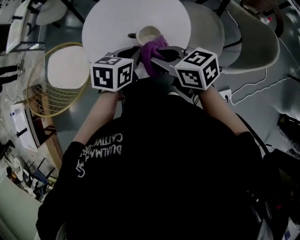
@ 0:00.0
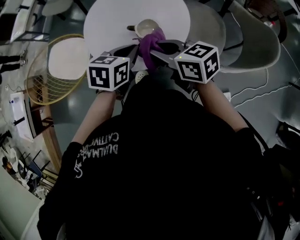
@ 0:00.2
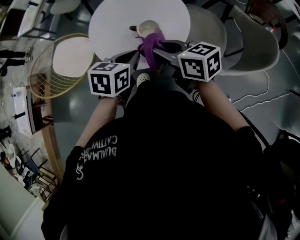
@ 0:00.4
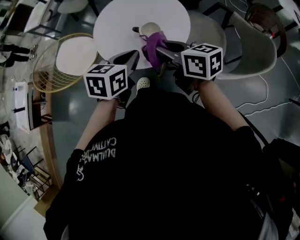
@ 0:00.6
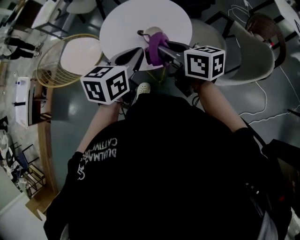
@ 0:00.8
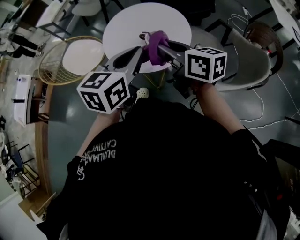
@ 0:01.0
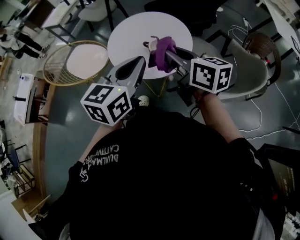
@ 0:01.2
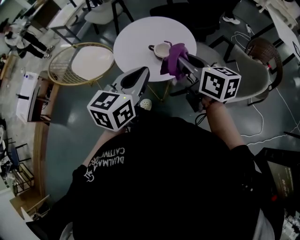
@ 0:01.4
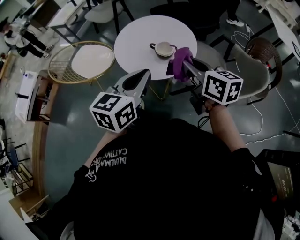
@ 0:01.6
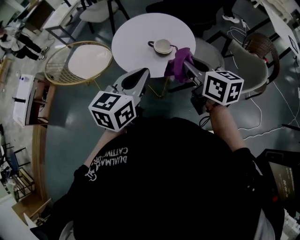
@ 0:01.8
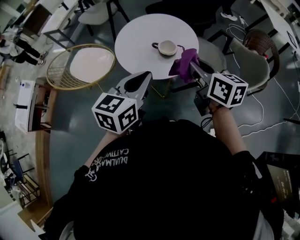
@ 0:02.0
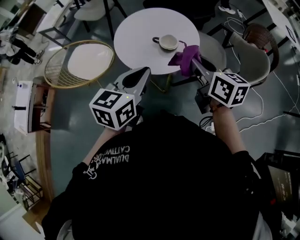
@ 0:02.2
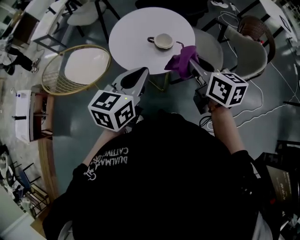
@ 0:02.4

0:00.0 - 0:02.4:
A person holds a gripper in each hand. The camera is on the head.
0:00.0 - 0:01.2: The grippers both shift upward and backward by some 20 cm. The left gripper changes its angle by some 40 degrees.
0:01.2 - 0:02.4: The left gripper shifts approximately 10 cm to the left and downward.

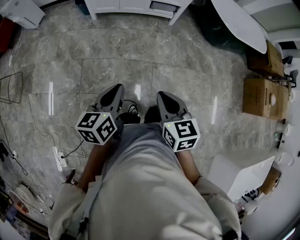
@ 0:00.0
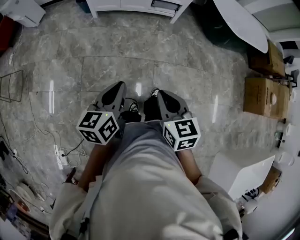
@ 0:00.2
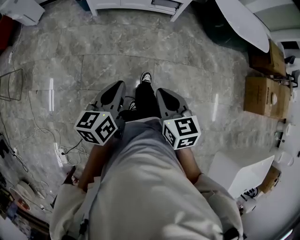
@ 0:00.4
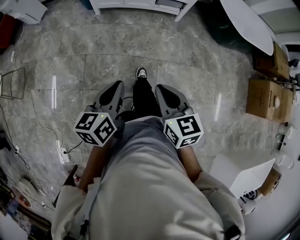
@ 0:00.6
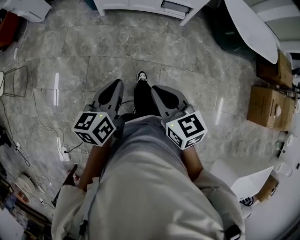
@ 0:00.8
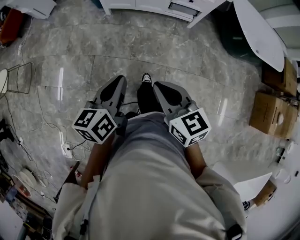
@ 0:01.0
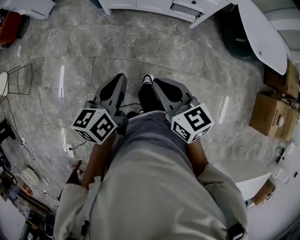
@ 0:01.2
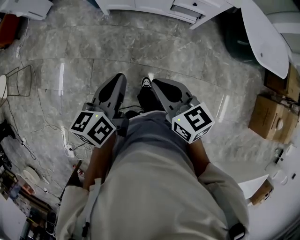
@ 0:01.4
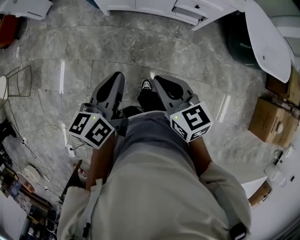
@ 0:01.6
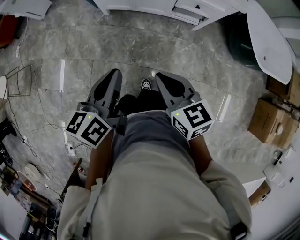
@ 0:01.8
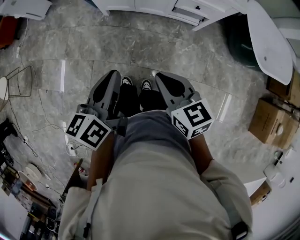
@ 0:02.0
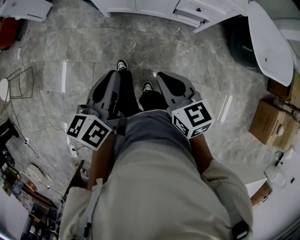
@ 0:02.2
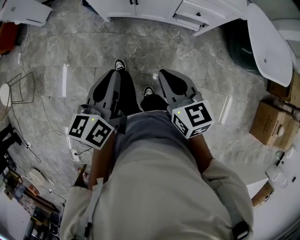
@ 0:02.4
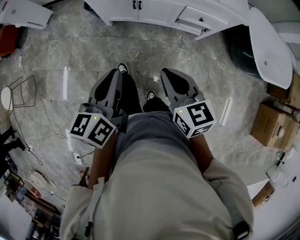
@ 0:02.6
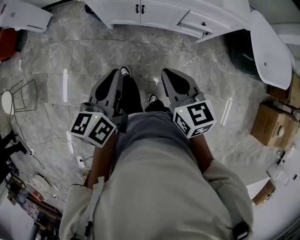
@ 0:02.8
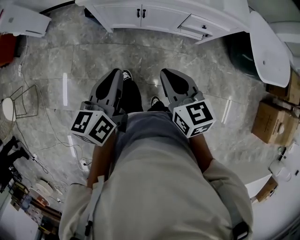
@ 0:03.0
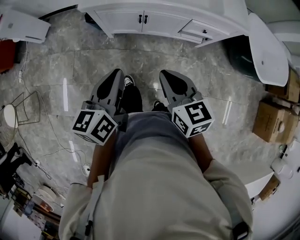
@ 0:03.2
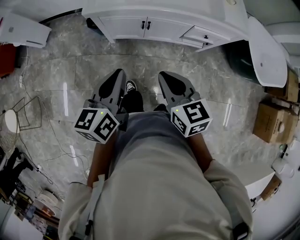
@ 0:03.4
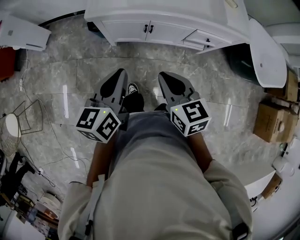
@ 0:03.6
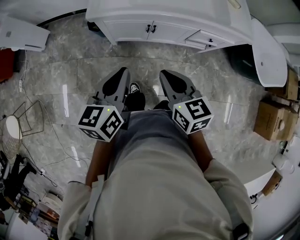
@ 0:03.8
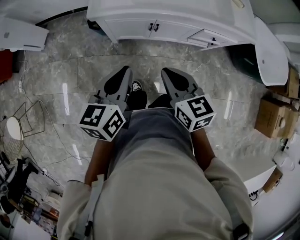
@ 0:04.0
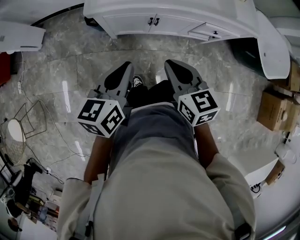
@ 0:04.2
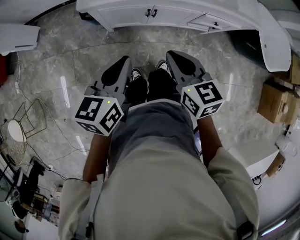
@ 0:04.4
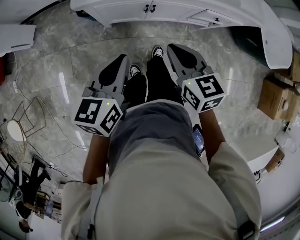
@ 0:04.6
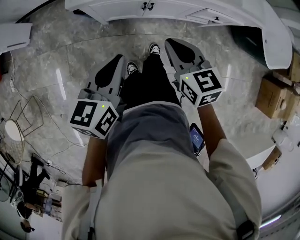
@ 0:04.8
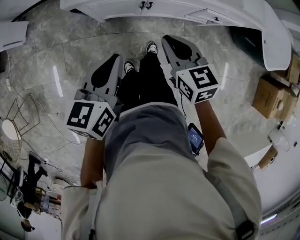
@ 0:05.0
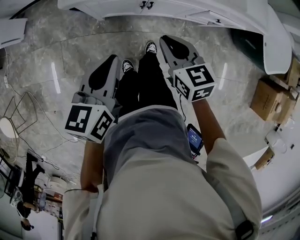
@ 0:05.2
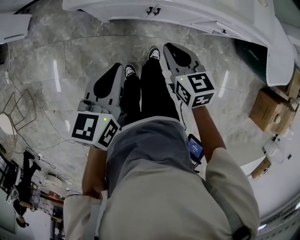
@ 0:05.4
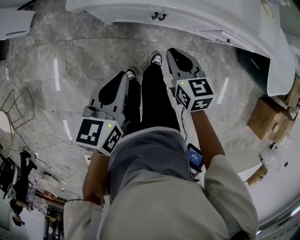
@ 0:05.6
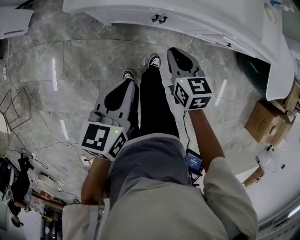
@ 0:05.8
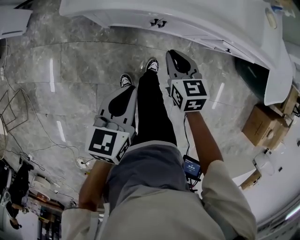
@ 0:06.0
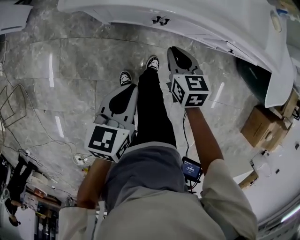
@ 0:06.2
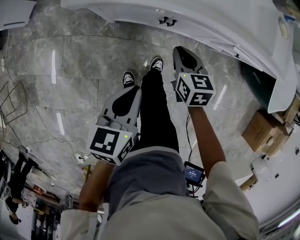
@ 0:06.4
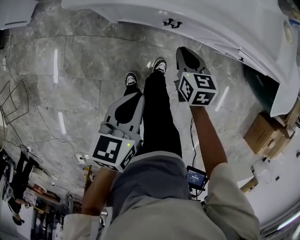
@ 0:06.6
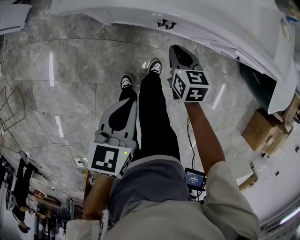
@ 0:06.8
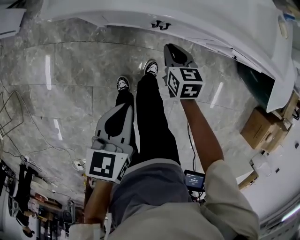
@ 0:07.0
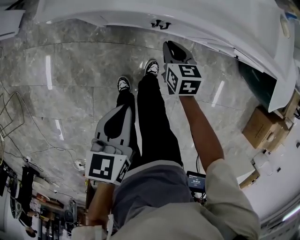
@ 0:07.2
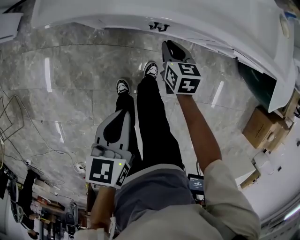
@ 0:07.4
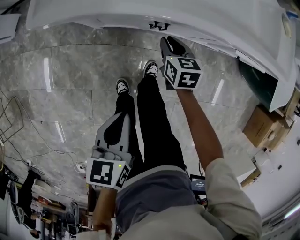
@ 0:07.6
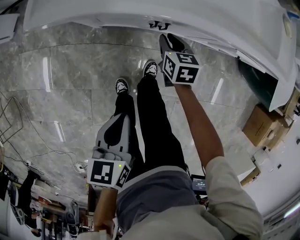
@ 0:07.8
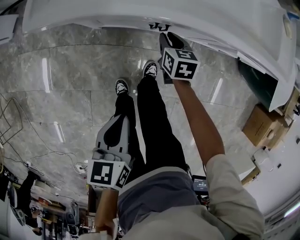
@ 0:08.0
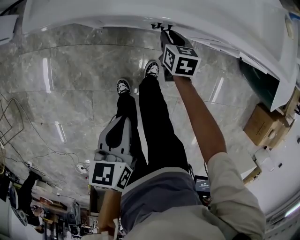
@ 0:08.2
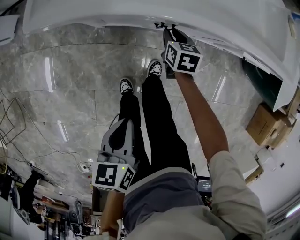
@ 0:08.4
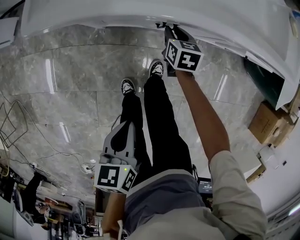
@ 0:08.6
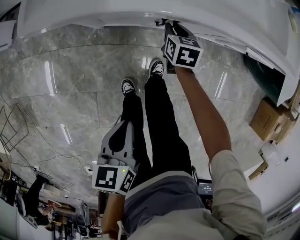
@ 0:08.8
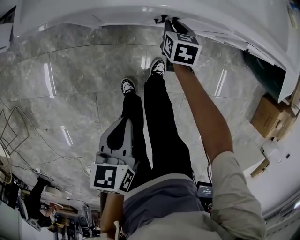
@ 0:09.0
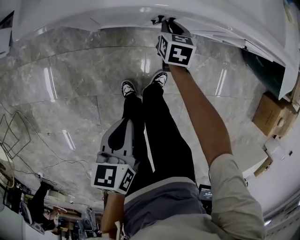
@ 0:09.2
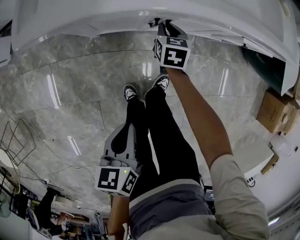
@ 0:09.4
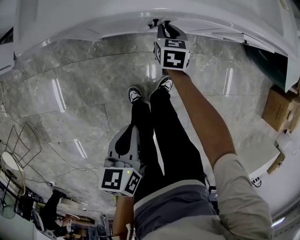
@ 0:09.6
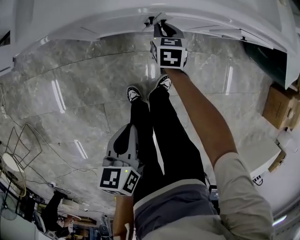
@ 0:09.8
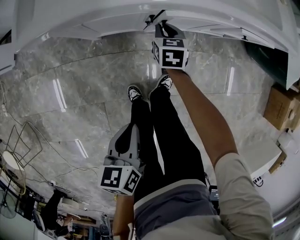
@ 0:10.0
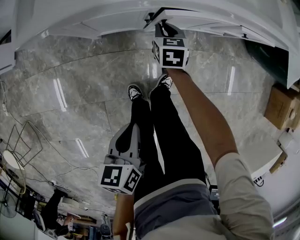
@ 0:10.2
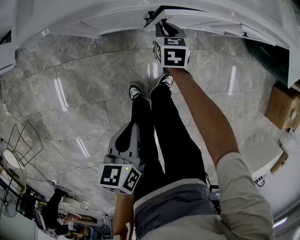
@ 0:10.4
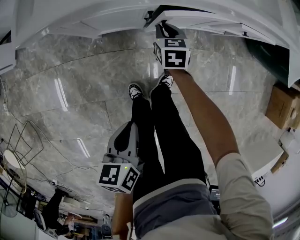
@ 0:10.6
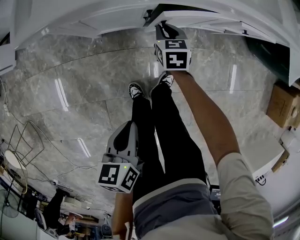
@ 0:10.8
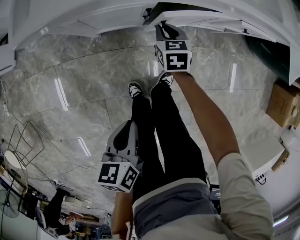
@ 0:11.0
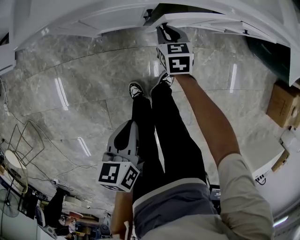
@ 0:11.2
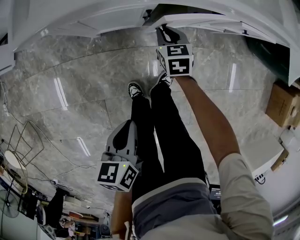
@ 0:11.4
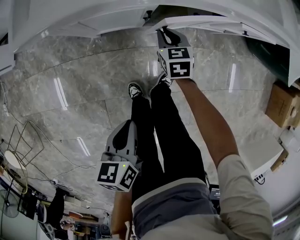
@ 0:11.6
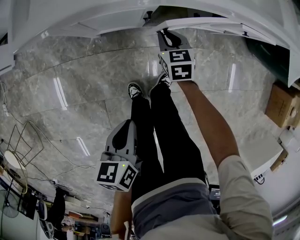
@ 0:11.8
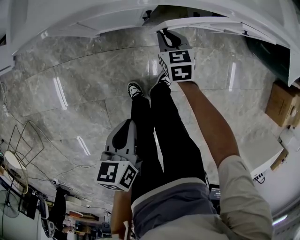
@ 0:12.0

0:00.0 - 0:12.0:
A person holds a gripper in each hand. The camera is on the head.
0:00.0 - 0:01.6: The two grippers go some 35 cm forward. The right gripper turns by about 20 degrees.
0:01.6 - 0:03.0: Both grippers move forward, roughly 20 cm.
0:03.0 - 0:04.4: Both grippers move forward and to the left, about 20 cm.
0:04.4 - 0:06.0: The right gripper is displaced downward and forward by about 25 cm. The left gripper travels downward by approximately 15 cm.
0:06.0 - 0:07.6: The left gripper heads downward, covering approximately 10 cm; the right gripper goes some 20 cm downward and forward.
0:07.6 - 0:09.0: The right gripper travels downward by some 5 cm. Meanwhile the left gripper moves some 5 cm.
0:09.0 - 0:10.4: The grippers make only small movements.
0:10.4 - 0:12.0: There are only small adjustments of the grippers.

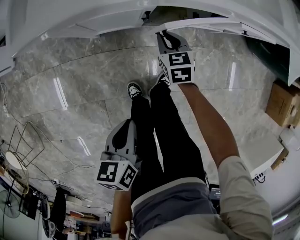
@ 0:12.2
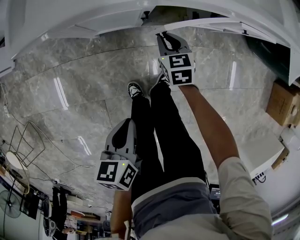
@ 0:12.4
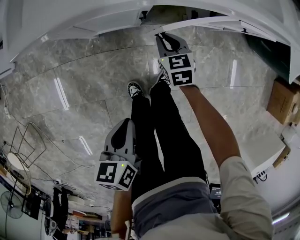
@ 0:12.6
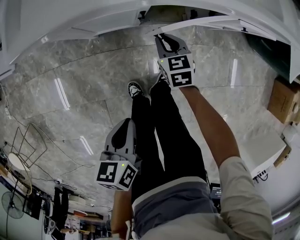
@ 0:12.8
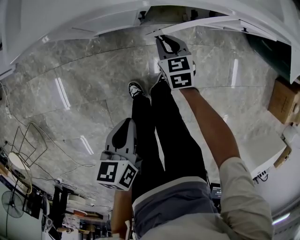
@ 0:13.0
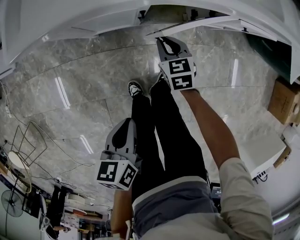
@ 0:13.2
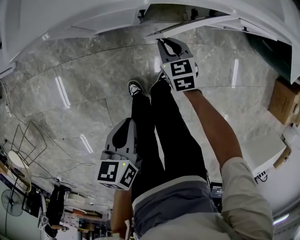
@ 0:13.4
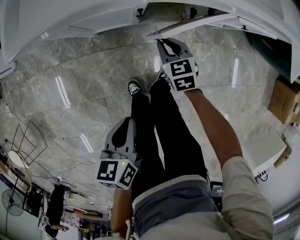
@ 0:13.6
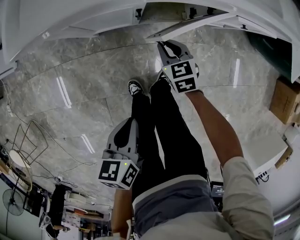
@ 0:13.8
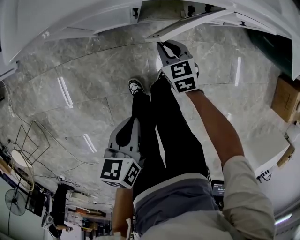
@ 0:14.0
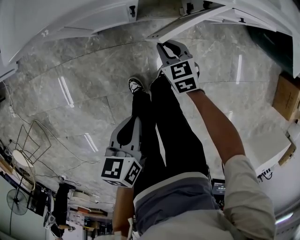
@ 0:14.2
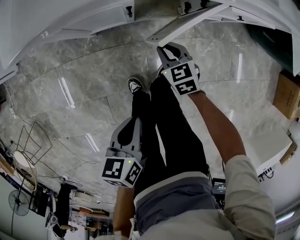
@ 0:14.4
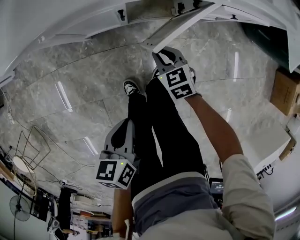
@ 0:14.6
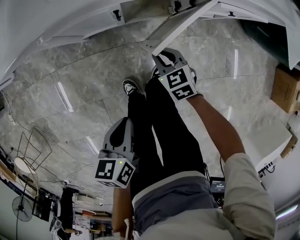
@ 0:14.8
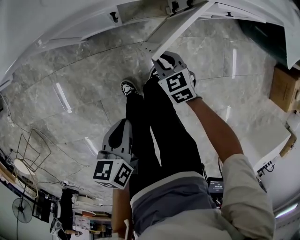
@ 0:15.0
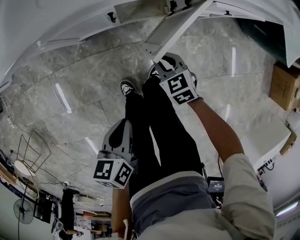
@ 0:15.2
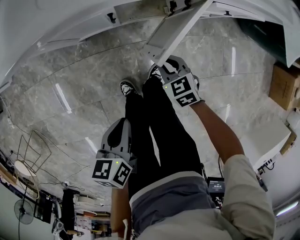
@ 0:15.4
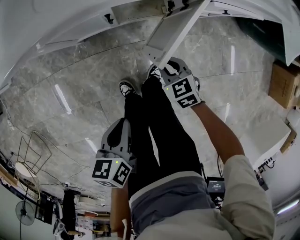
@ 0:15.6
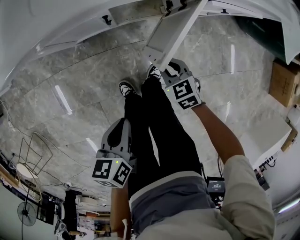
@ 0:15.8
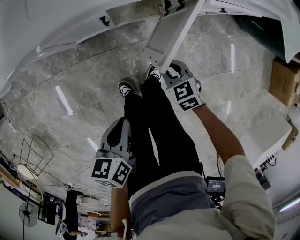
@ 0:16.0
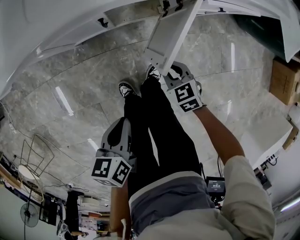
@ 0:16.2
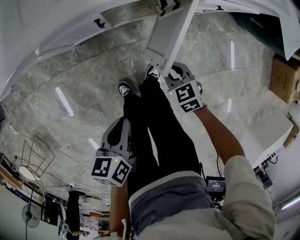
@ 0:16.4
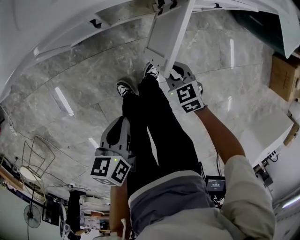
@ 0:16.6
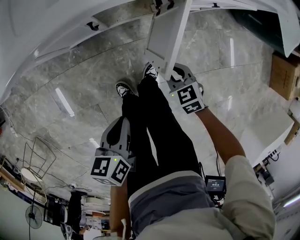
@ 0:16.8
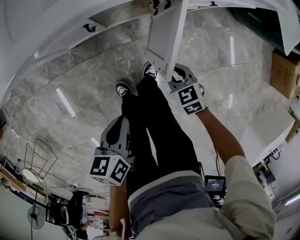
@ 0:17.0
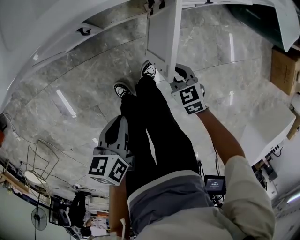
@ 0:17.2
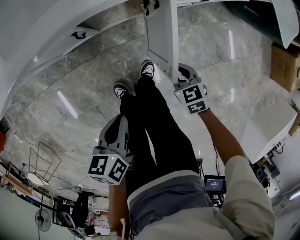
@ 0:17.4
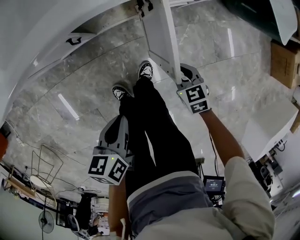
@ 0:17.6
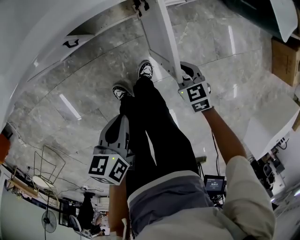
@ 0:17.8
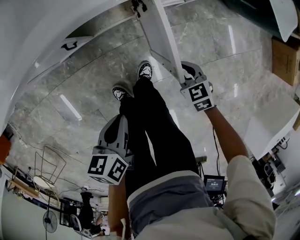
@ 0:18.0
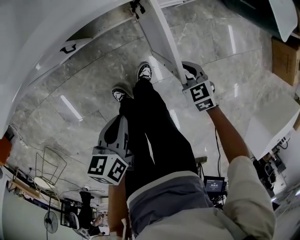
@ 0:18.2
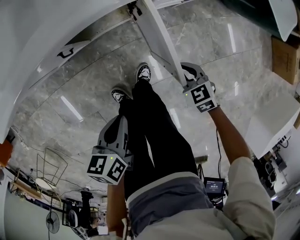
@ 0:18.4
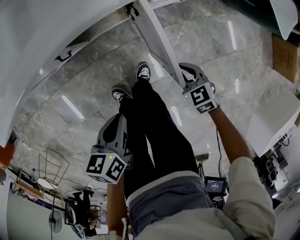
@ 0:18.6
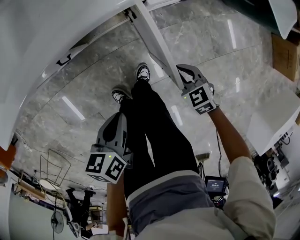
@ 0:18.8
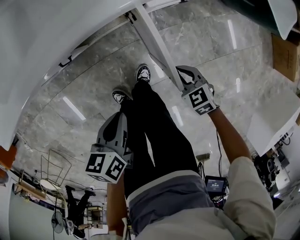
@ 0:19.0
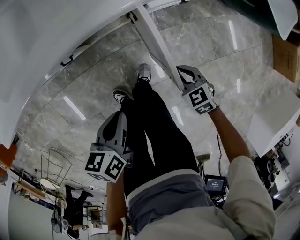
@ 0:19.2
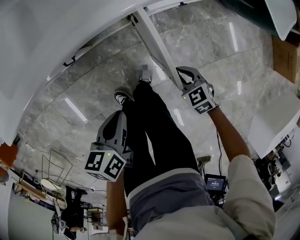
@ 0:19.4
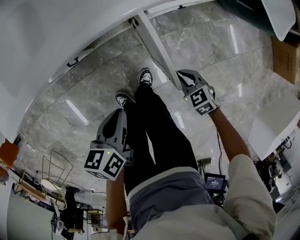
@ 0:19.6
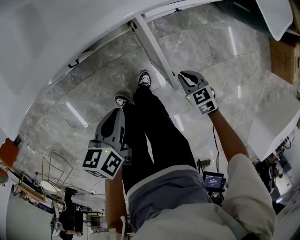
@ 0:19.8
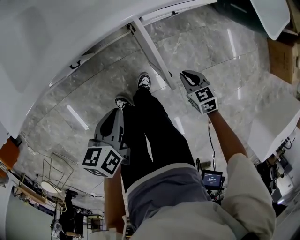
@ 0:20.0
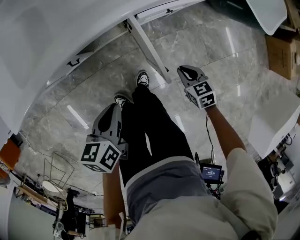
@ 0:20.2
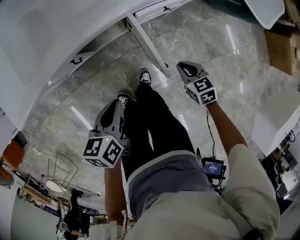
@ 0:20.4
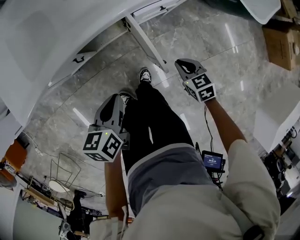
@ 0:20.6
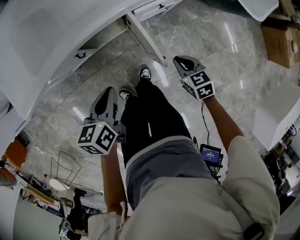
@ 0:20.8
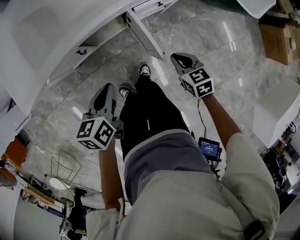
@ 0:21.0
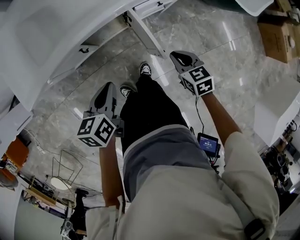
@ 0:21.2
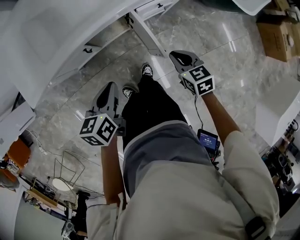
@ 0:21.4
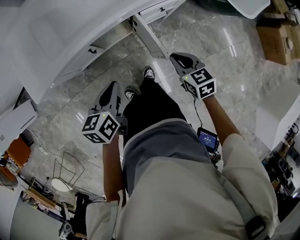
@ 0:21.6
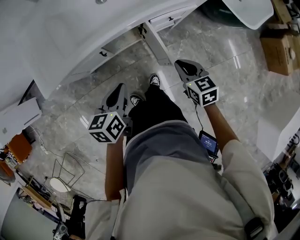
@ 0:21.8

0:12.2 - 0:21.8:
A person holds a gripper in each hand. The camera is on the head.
0:12.2 - 0:13.8: The grippers stay close to where they were, moving slightly.
0:13.8 - 0:15.4: The right gripper goes about 10 cm backward and to the right.
0:15.4 - 0:17.0: The left gripper changes place by roughly 5 cm, while the right gripper is displaced to the right by roughly 10 cm.
0:17.0 - 0:18.6: The right gripper heads to the right, covering about 15 cm, while the left gripper is displaced to the right and forward by about 10 cm.
0:18.6 - 0:20.2: The right gripper travels upward and to the right by some 10 cm. Meanwhile the left gripper shifts approximately 10 cm upward.
0:20.2 - 0:21.8: The left gripper moves upward, about 15 cm; the right gripper is displaced upward by some 25 cm.
